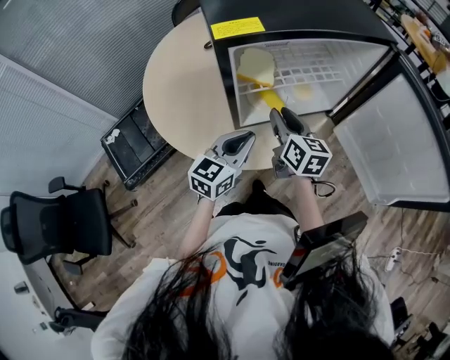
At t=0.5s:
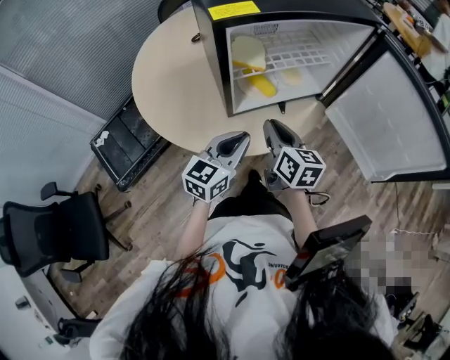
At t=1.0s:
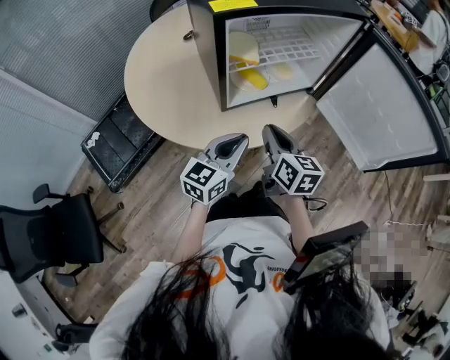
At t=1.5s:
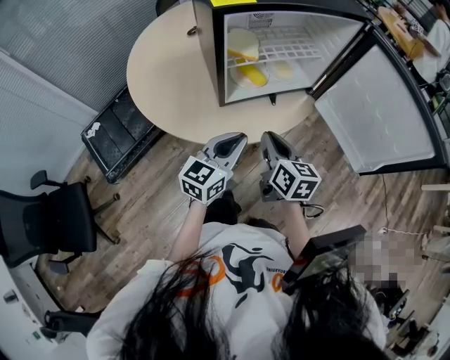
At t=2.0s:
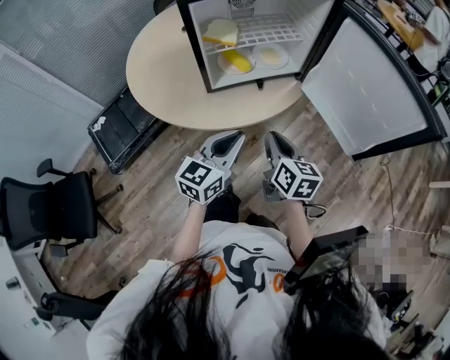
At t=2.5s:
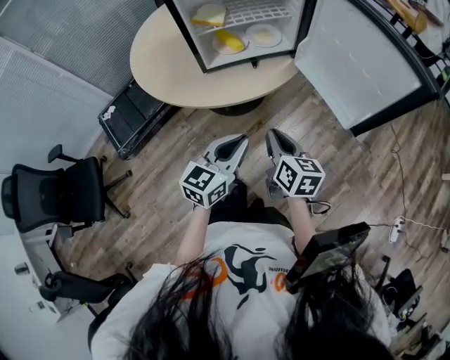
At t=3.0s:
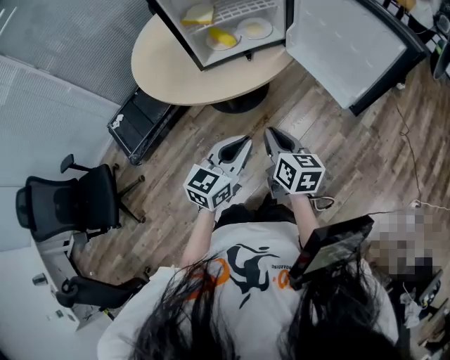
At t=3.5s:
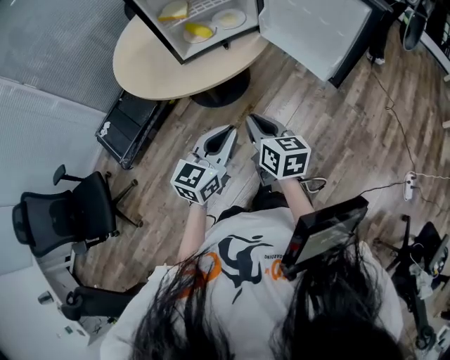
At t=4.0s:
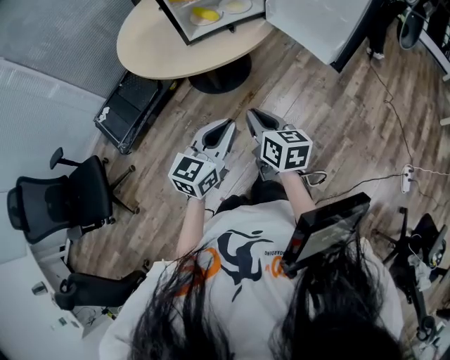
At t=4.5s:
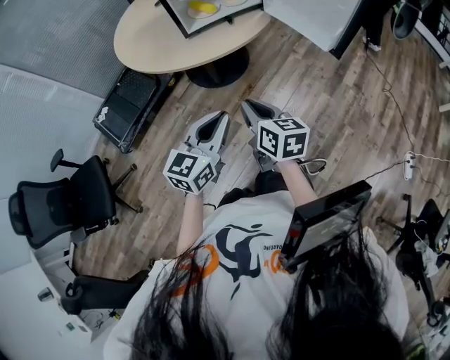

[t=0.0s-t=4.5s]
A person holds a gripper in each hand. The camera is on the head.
t=0.0s to t=2.0s: The two grippers go about 20 cm backward and to the right.
t=2.0s to t=4.5s: The two grippers go about 25 cm backward.

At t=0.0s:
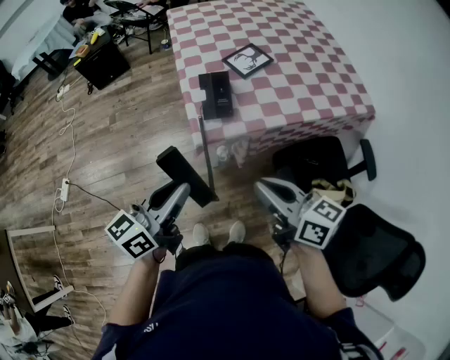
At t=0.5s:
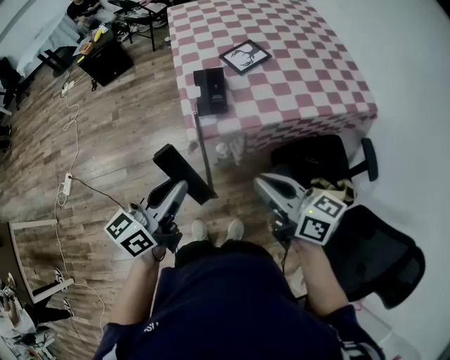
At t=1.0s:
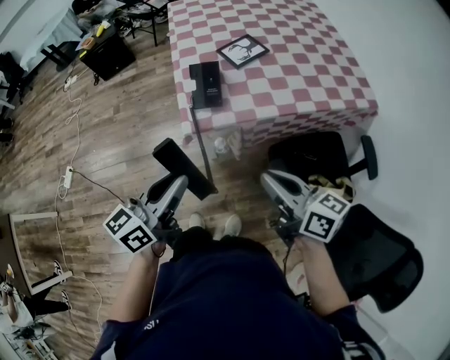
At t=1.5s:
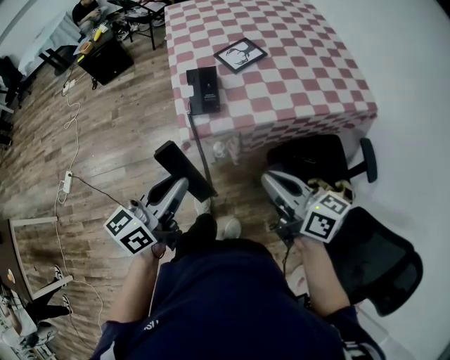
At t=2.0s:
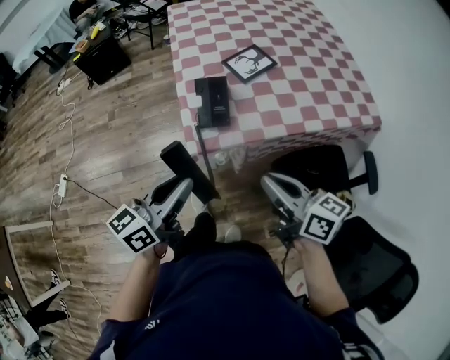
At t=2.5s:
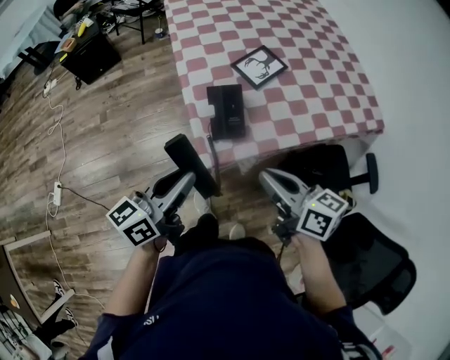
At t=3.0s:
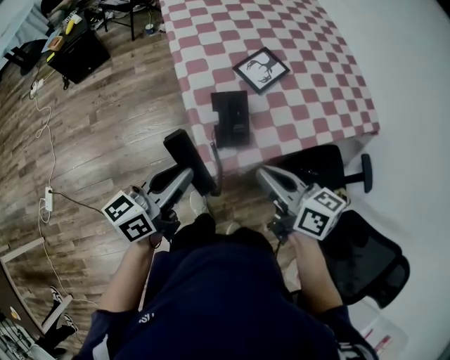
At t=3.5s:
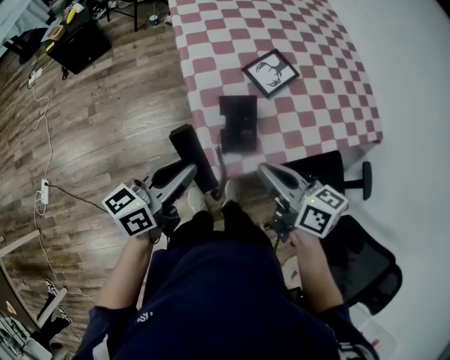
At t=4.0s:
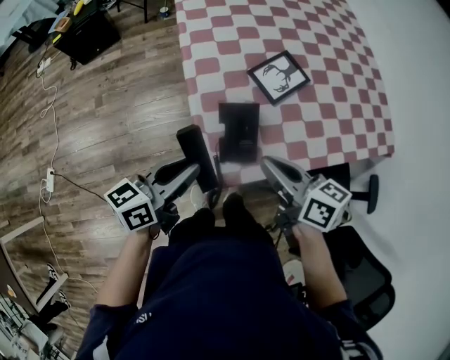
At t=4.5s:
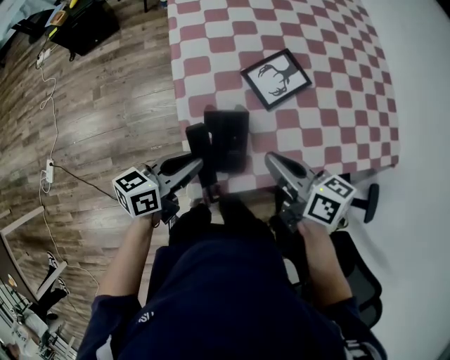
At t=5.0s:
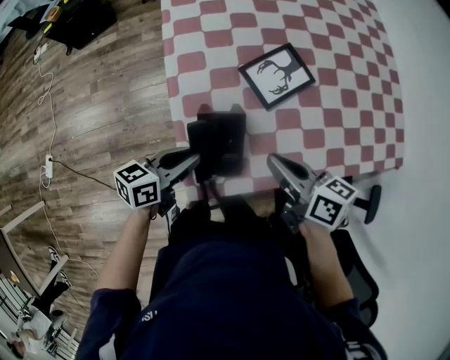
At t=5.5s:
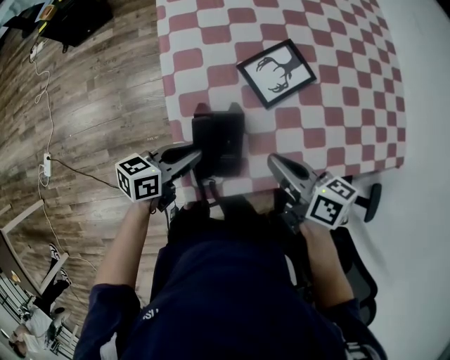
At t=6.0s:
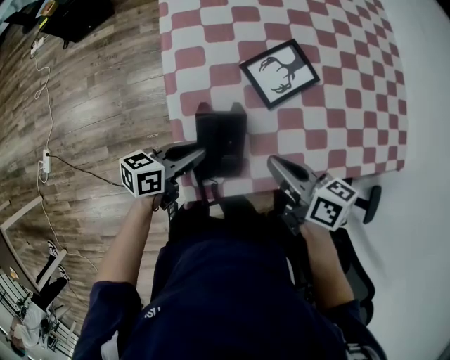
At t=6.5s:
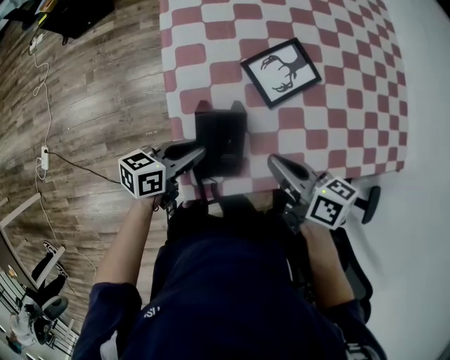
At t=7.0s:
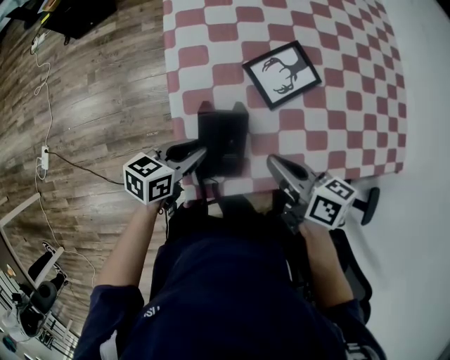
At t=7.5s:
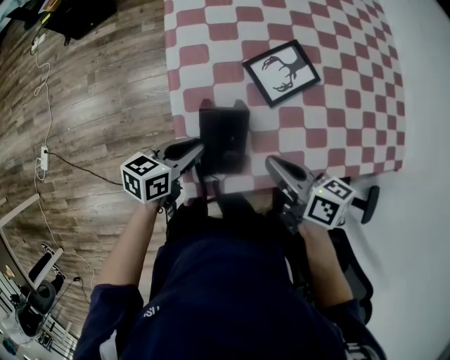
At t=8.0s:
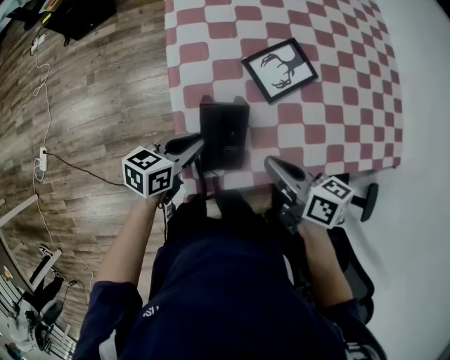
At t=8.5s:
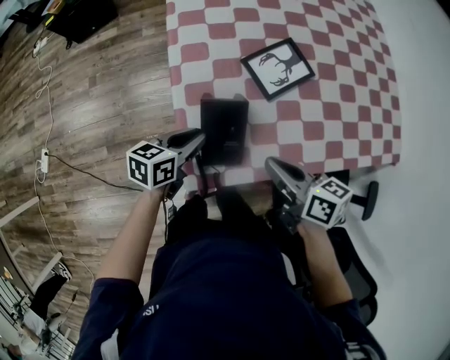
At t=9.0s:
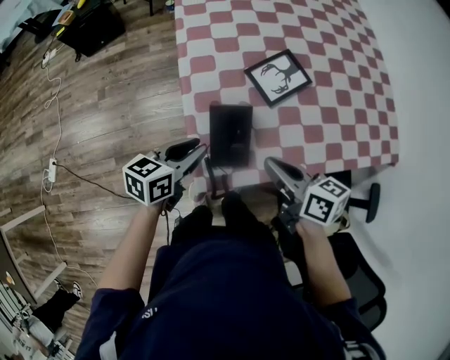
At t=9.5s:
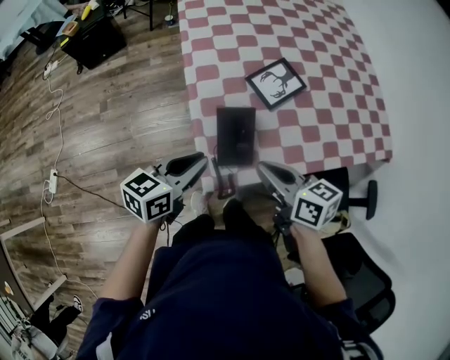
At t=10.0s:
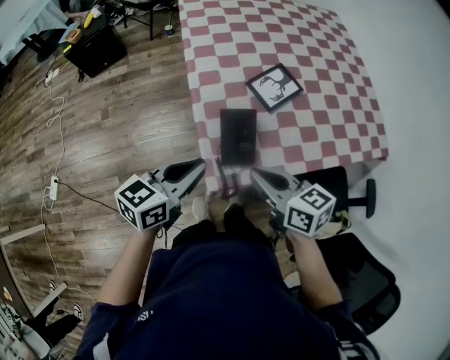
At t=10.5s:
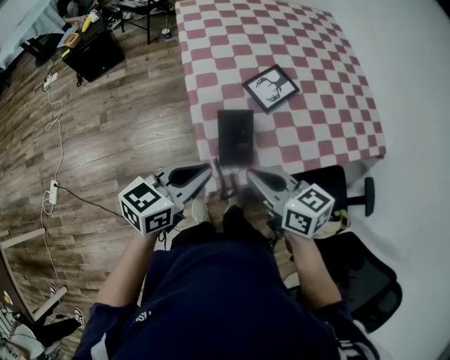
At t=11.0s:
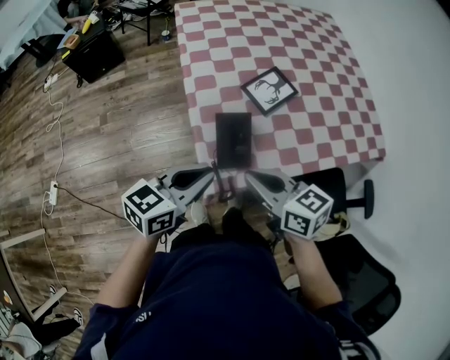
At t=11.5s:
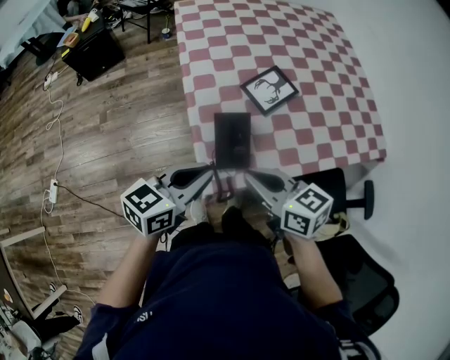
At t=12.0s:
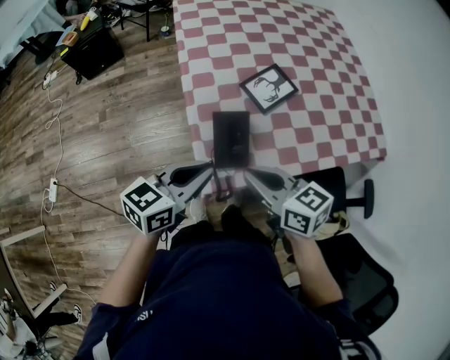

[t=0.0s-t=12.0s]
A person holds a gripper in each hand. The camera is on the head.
t=0.0s to t=2.0s: The right gripper moves forward and to the right, roughly 10 cm; the left gripper heads forward, covering approximately 5 cm.
t=2.0s to t=4.0s: The right gripper heads forward and to the left, covering approximately 25 cm, while the left gripper is displaced forward by about 20 cm.
t=4.0s to t=6.0s: The right gripper shifts approximately 15 cm downward, to the right and forward; the left gripper is displaced downward, forward and to the right by about 20 cm.
t=6.0s to t=8.0s: The grippers stay close to where they were, moving slightly.
t=8.0s to t=10.0s: The left gripper shifts roughly 20 cm upward and backward. The right gripper shifts roughly 15 cm to the left, backward and upward.
t=10.0s to t=12.0s: The grippers move only a little.

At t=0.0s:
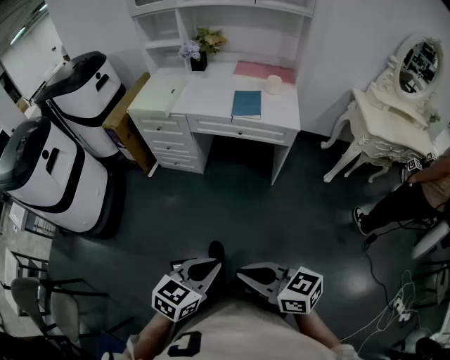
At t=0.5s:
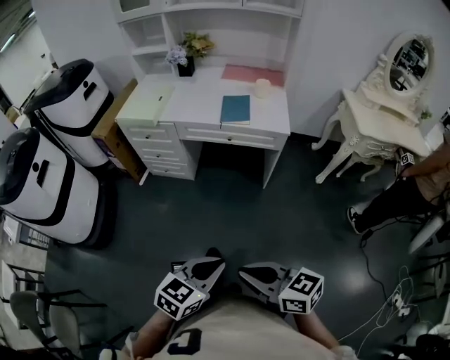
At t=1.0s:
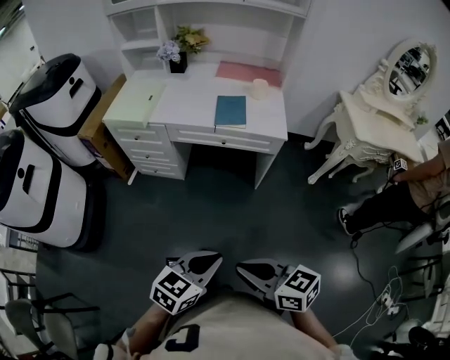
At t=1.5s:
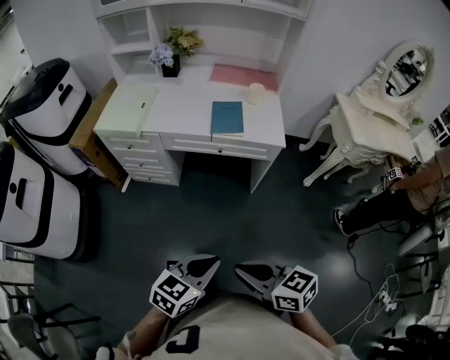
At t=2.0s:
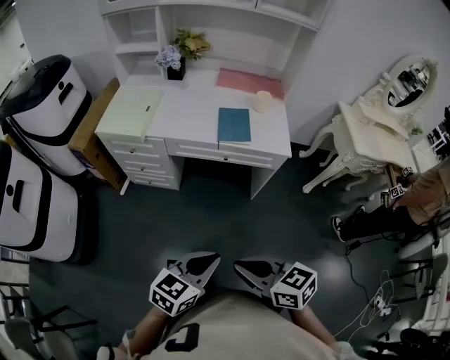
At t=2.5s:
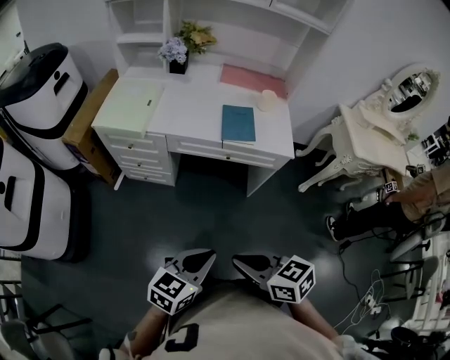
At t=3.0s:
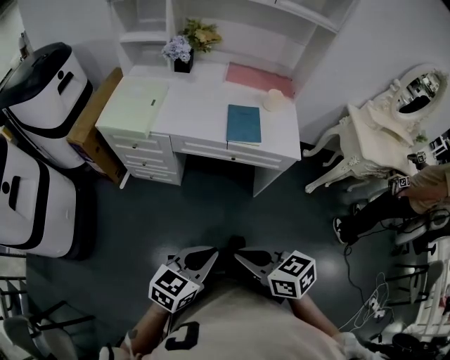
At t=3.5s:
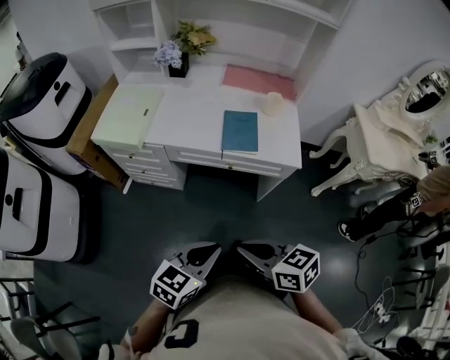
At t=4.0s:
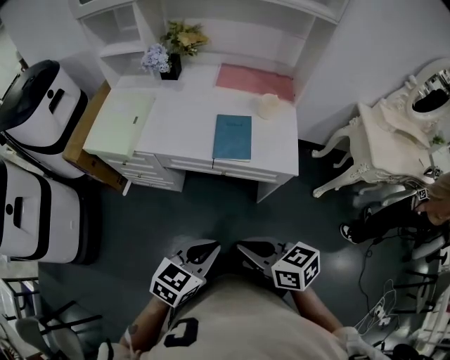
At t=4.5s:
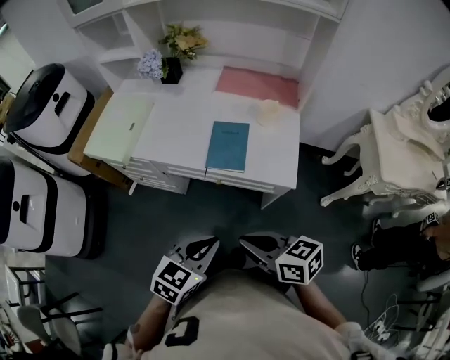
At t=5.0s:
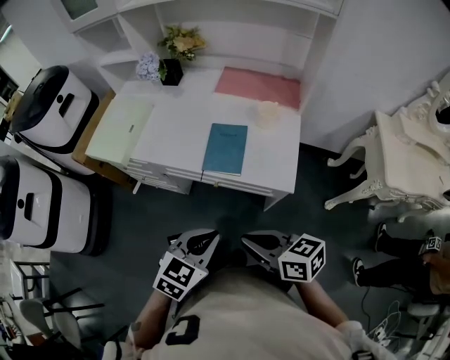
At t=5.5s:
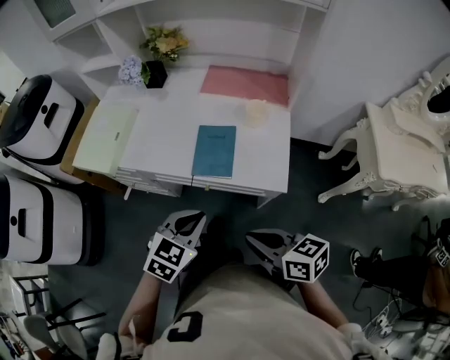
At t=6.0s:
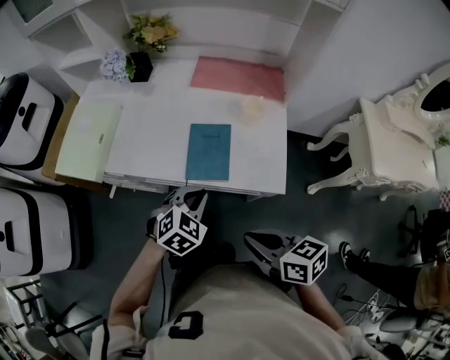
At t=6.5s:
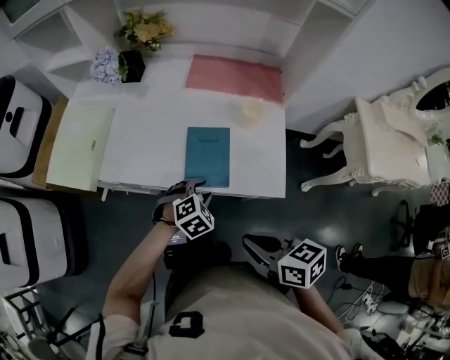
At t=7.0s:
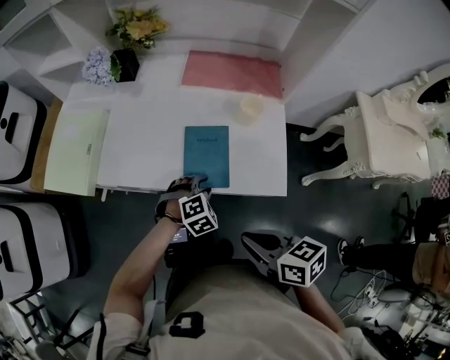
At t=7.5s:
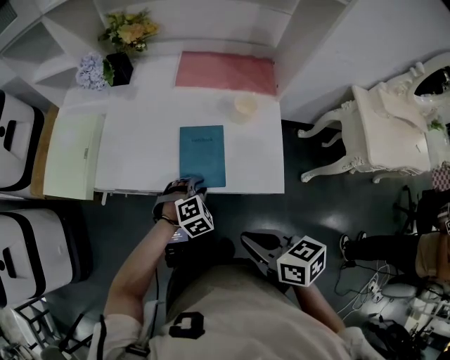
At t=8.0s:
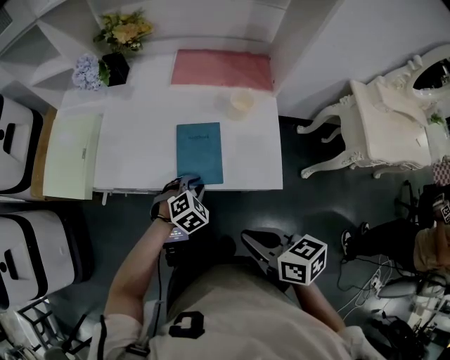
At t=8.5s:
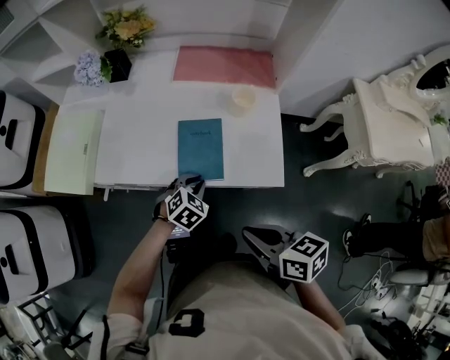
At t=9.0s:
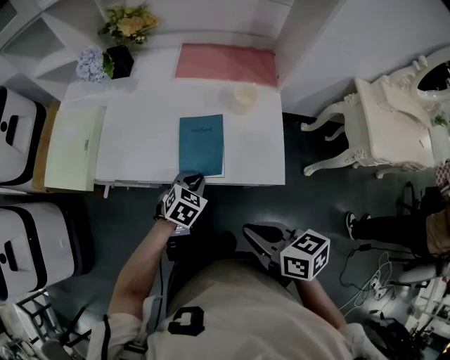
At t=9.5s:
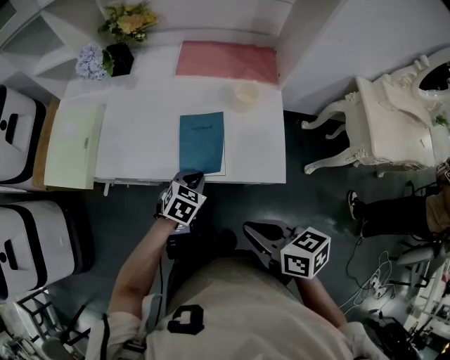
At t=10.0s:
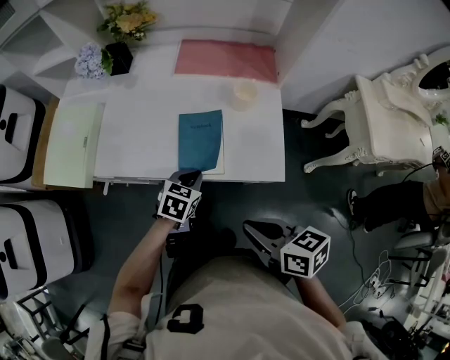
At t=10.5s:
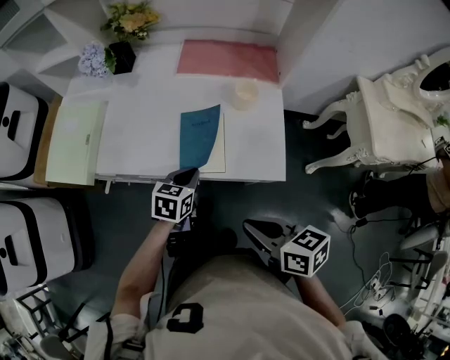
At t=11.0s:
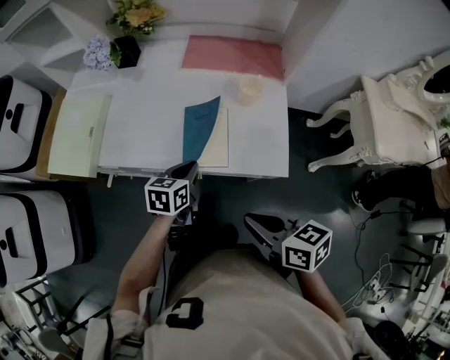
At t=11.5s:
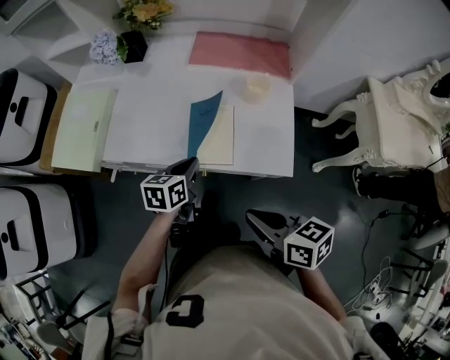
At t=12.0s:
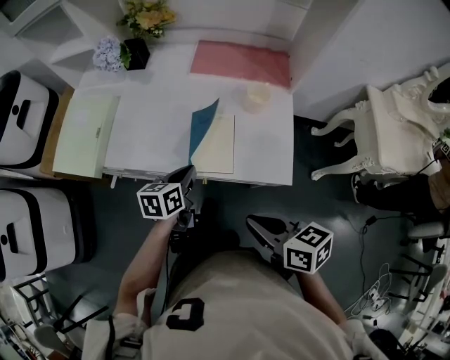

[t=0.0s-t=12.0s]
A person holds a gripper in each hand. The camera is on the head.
t=0.0s to t=2.0s: Both grippers travel together forward, approximately 20 cm.
t=2.0s to t=4.0s: The two grippers go roughly 20 cm forward and to the right.
t=4.0s to t=6.0s: The right gripper travels to the right and forward by roughly 15 cm, while the left gripper shifts roughly 25 cm forward and to the right, and turns by roughly 40 degrees.
t=6.0s to t=8.0s: The left gripper moves downward, approximately 10 cm.
t=8.0s to t=10.0s: The left gripper rotates approximately 40 degrees.
t=10.0s to t=12.0s: The left gripper shifts by roughly 5 cm, and swivels about 30 degrees.
